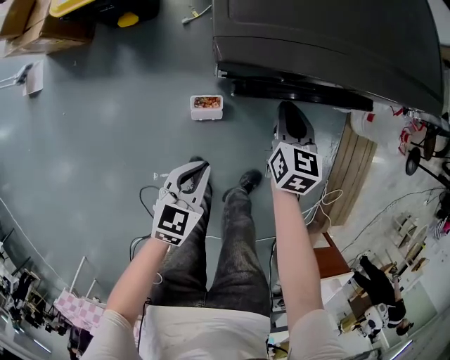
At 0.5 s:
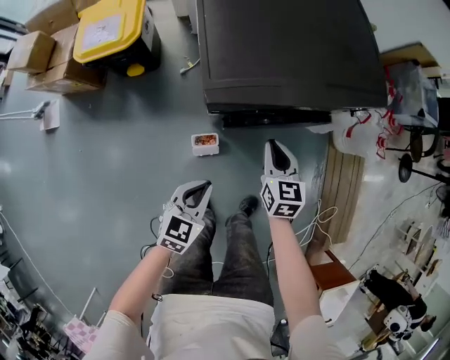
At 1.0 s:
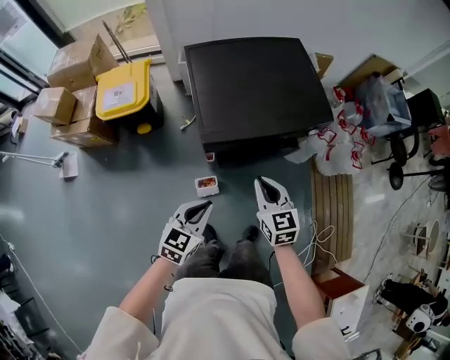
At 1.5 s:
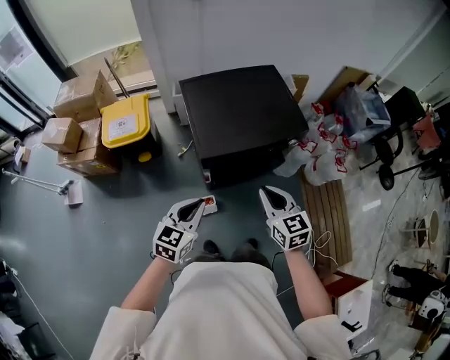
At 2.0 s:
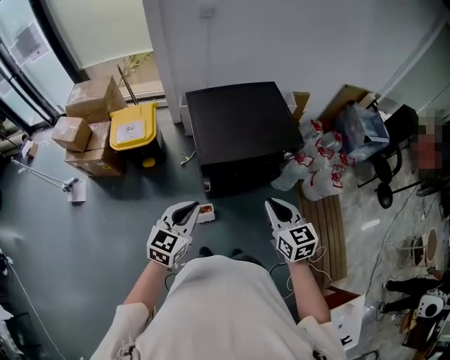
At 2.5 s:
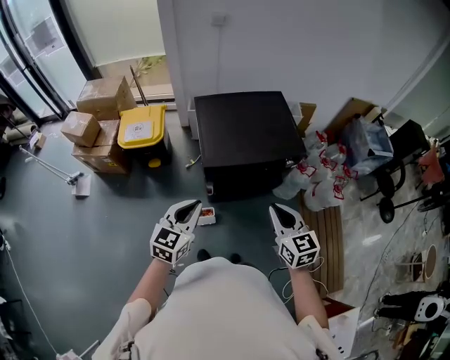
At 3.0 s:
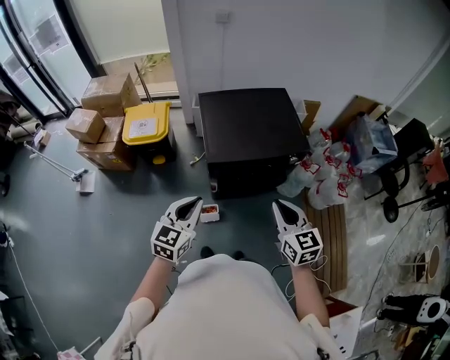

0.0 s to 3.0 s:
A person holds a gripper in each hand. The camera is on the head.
0.0 to 1.5 s: The grippers both shift upward by about 50 cm. The left gripper turns by about 20 degrees.
1.5 to 3.0 s: The right gripper travels upward, backward and to the right by about 15 cm, while the left gripper goes about 10 cm upward and backward.

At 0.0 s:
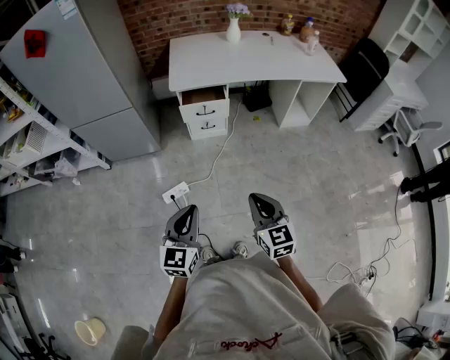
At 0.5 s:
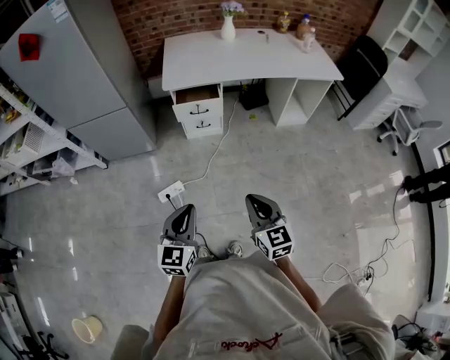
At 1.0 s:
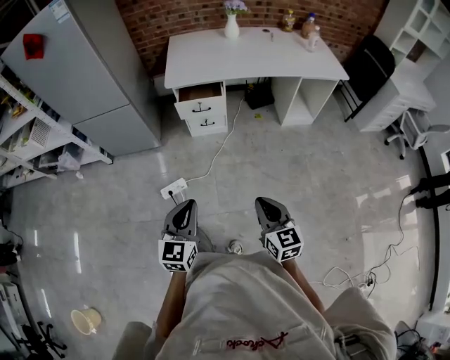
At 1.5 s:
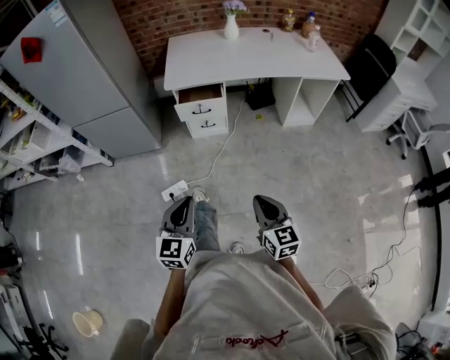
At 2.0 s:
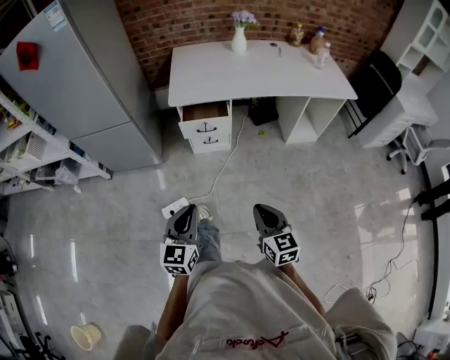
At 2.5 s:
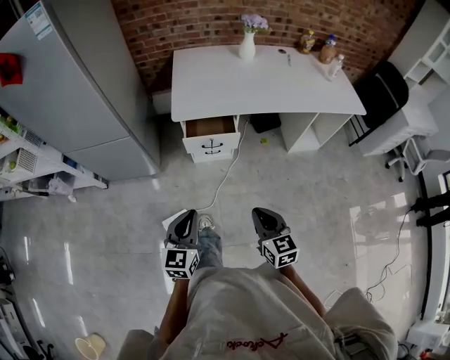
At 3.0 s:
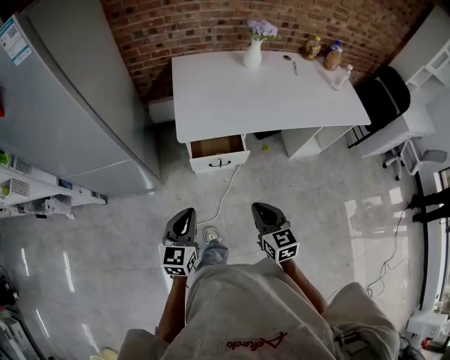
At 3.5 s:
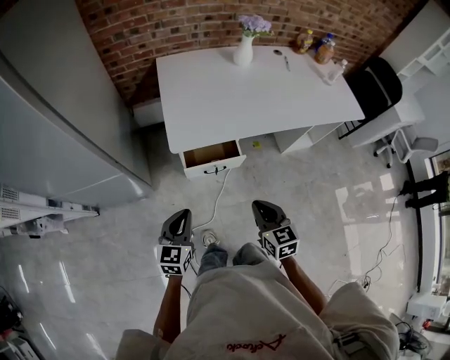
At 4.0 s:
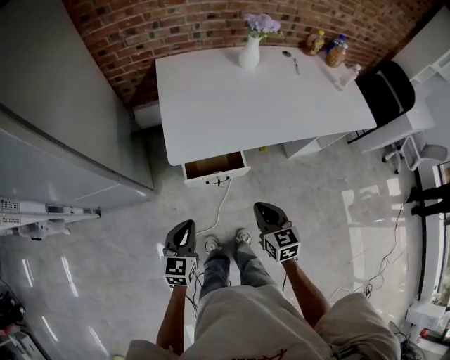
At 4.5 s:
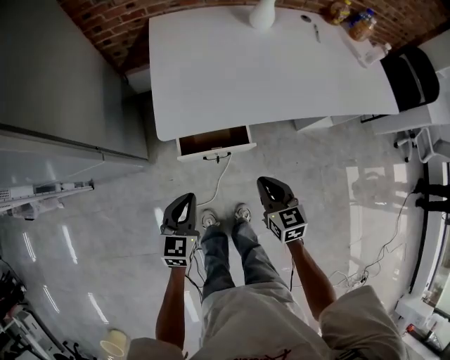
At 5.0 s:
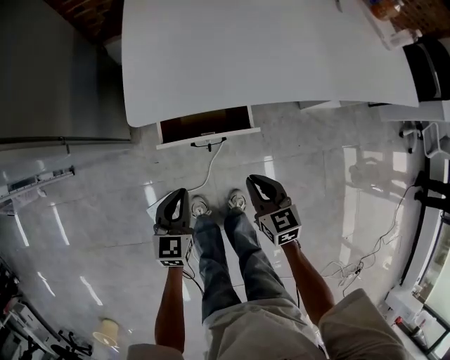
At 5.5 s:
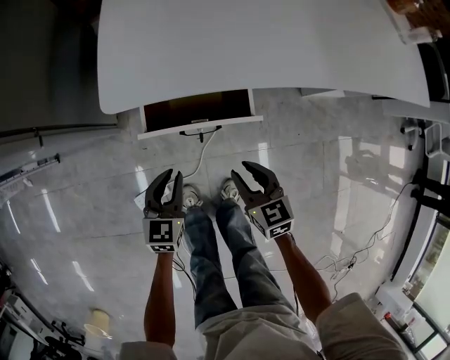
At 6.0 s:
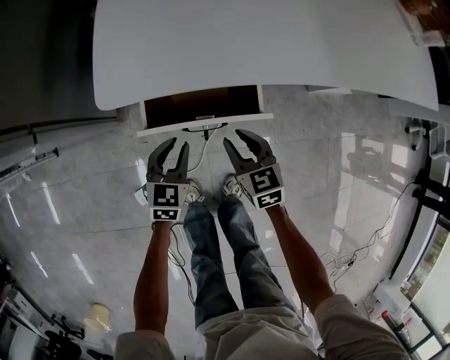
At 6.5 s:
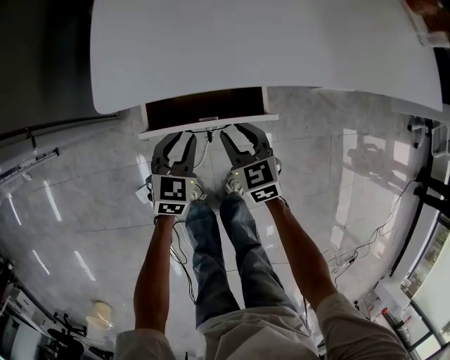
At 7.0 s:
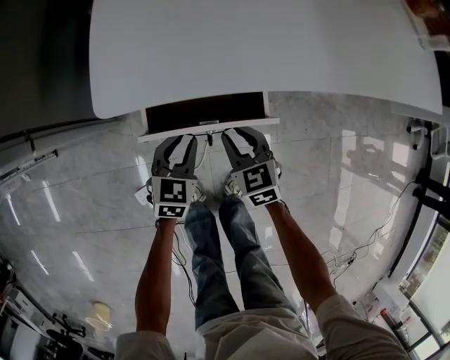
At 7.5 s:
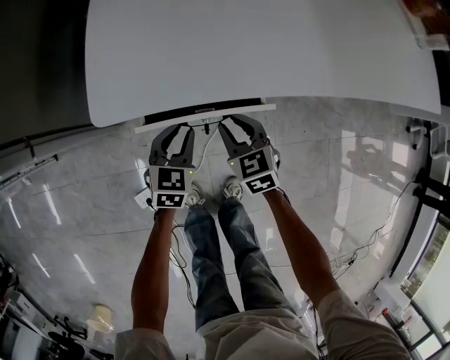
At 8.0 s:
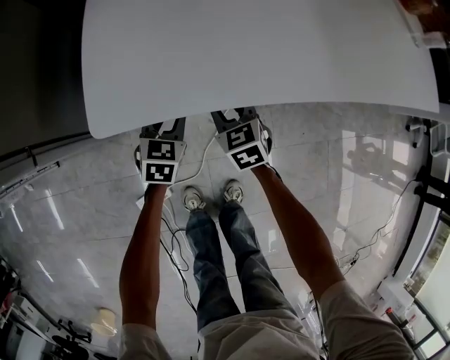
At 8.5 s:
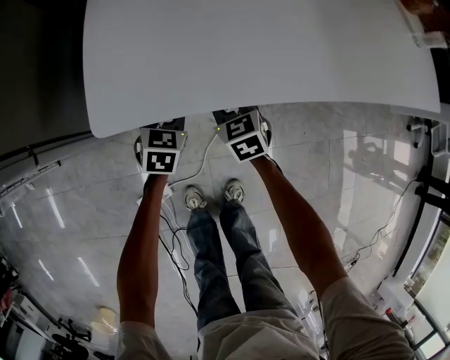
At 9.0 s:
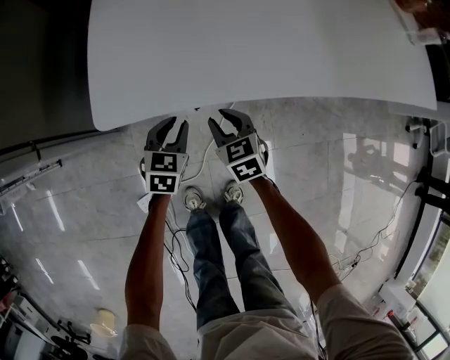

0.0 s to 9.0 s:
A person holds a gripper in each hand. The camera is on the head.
0.0 to 2.0 s: The right gripper shifts some 10 cm forward, to the right and downward; the left gripper shifts about 10 cm forward.
2.0 to 4.5 s: The pair of grippers is taken forward, roughly 40 cm.
4.5 to 7.0 s: Both grippers travel together downward and forward, about 25 cm. The right gripper opens its fingers. Meanwhile the left gripper opens up.
7.0 to 9.0 s: Both grippers travel together forward, approximately 5 cm.

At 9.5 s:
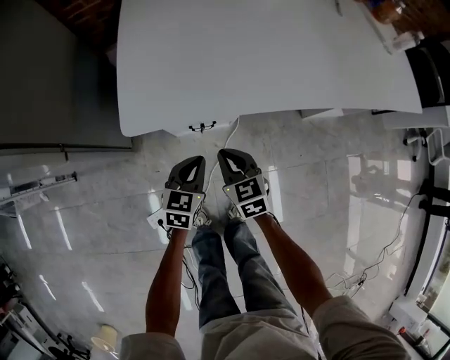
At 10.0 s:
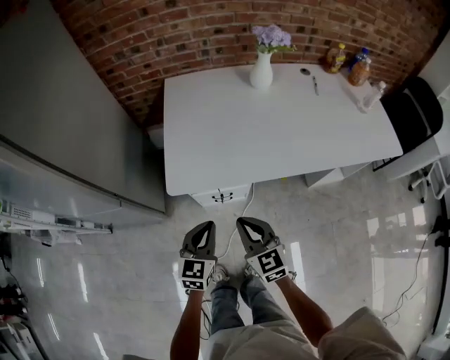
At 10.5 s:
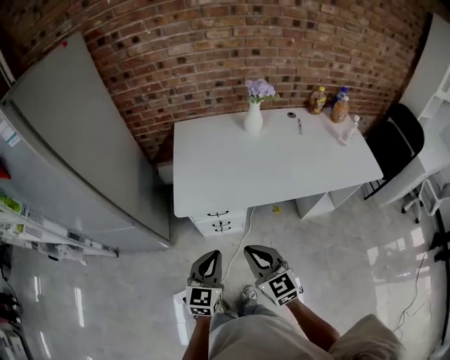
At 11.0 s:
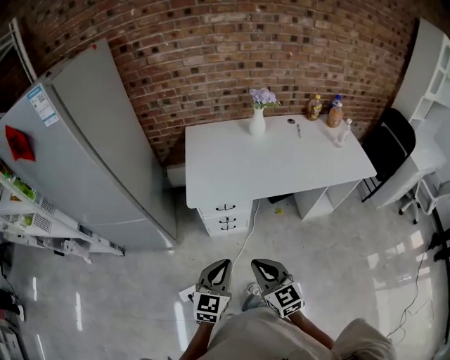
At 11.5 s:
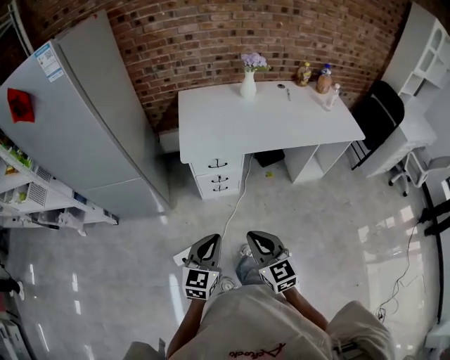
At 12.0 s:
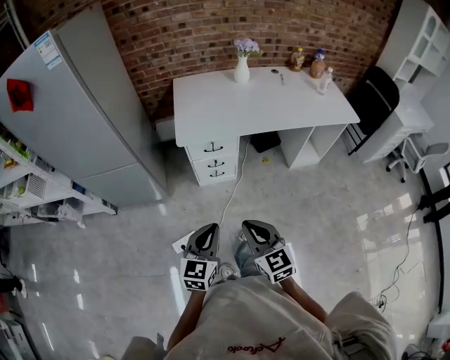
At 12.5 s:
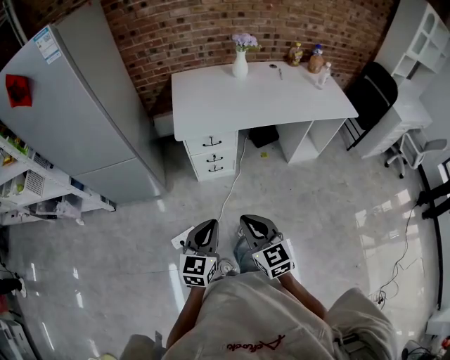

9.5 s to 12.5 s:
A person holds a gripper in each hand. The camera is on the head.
9.5 to 11.0 s: Both grippers travel together upward and backward, some 40 cm. The right gripper rotates about 20 degrees. Meanwhile the left gripper swivels roughly 20 degrees.
11.0 to 12.5 s: Both grippers travel together backward, approximately 15 cm.

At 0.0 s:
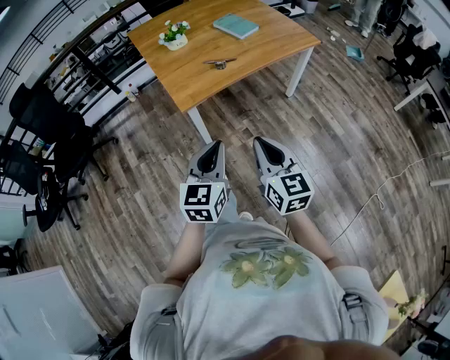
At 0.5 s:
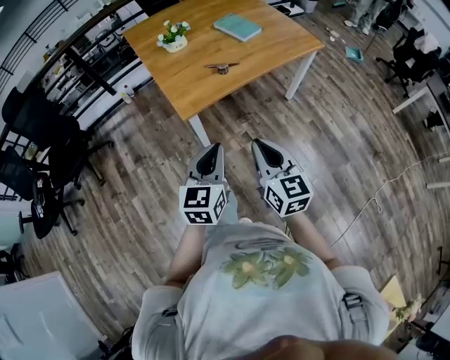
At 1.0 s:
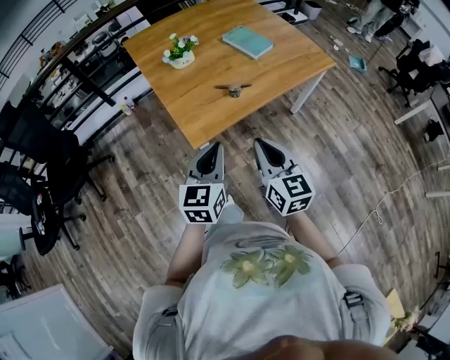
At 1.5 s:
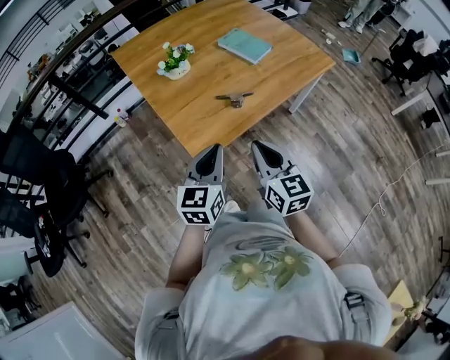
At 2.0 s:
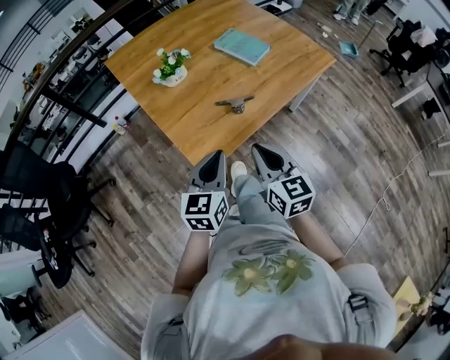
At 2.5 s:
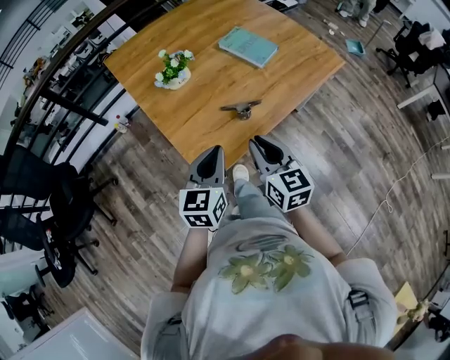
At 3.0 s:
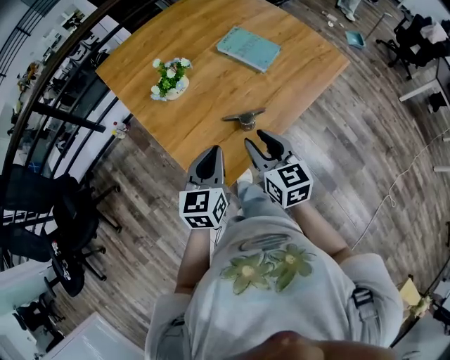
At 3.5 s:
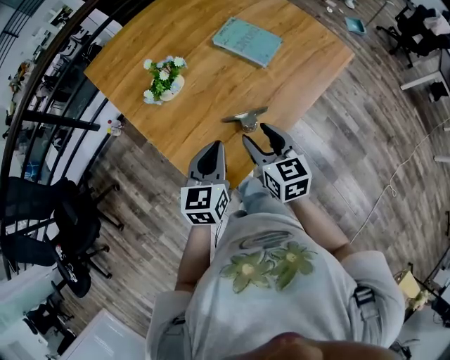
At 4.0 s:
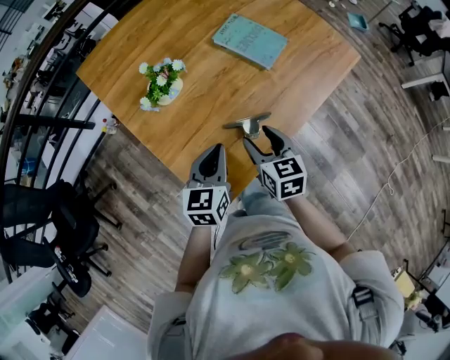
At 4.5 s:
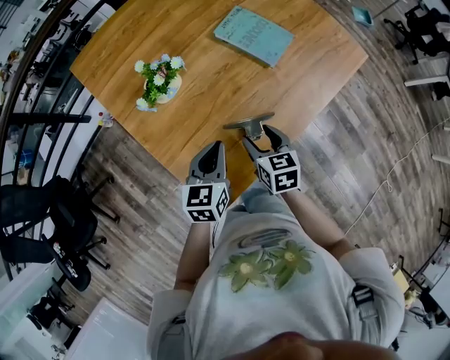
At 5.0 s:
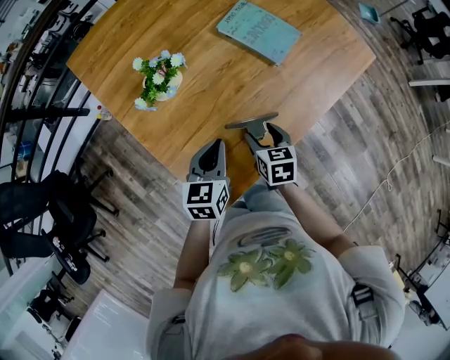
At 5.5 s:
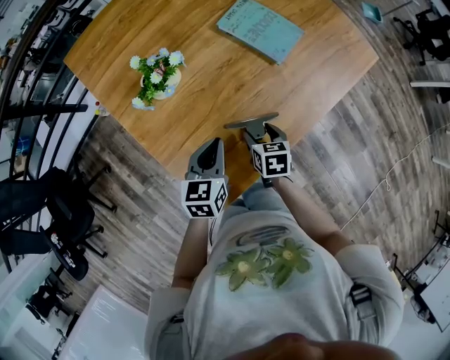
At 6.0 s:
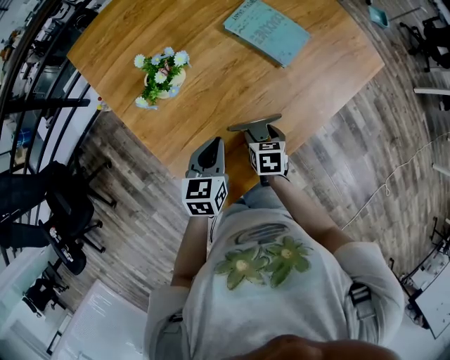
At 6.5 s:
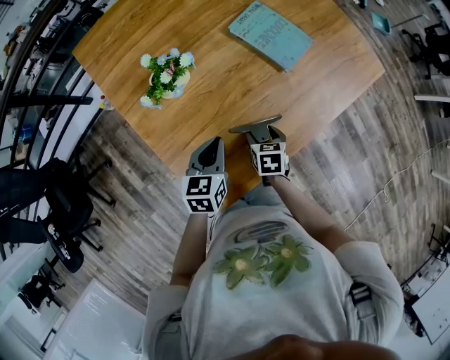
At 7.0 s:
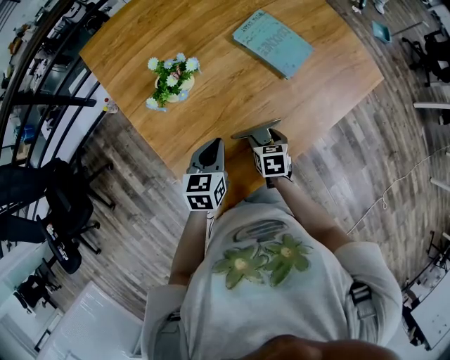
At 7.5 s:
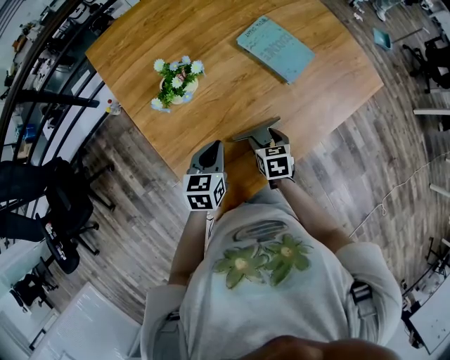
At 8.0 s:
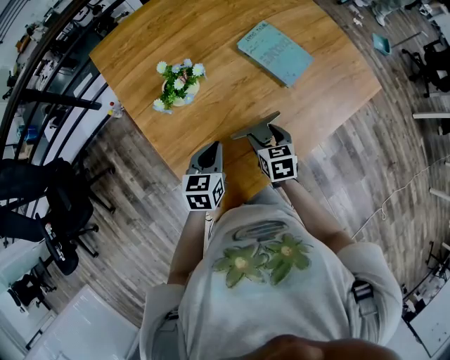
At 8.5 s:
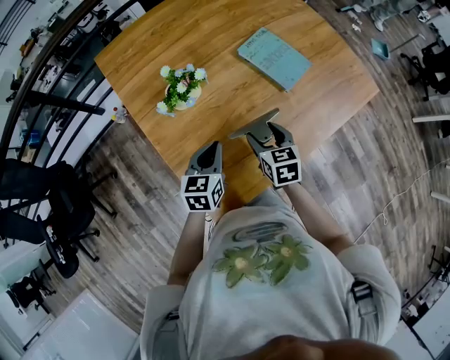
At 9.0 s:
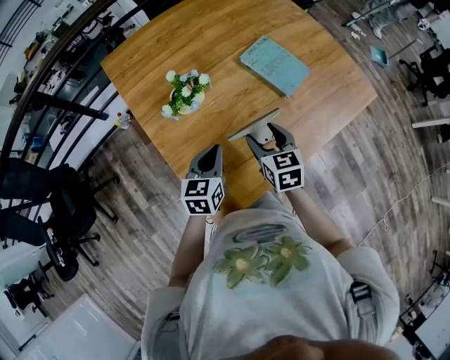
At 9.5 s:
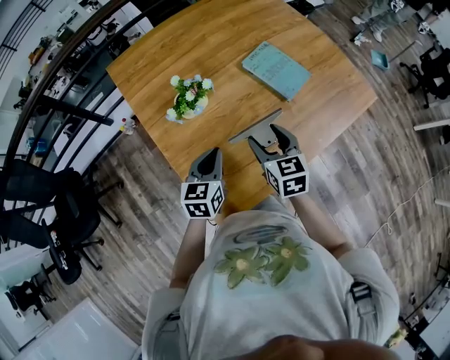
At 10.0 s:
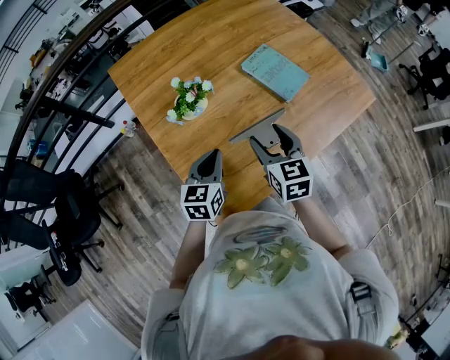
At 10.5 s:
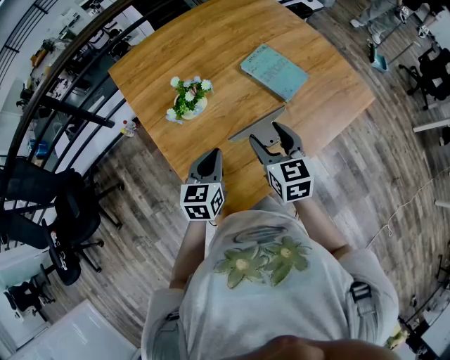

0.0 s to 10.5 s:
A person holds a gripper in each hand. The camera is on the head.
0.0 to 2.0 s: Both grippers travel together forward, some 30 cm.
2.0 to 4.0 s: The two grippers go about 25 cm forward and downward. The right gripper opens.
4.0 to 6.5 s: The left gripper travels downward by roughly 10 cm, while the right gripper is displaced downward by about 15 cm, and rotates approximately 30 degrees.
6.5 to 8.5 s: The right gripper goes about 15 cm upward, and changes its angle by approximately 20 degrees.
8.5 to 10.5 s: The right gripper travels upward by roughly 10 cm. The left gripper travels upward by about 5 cm.

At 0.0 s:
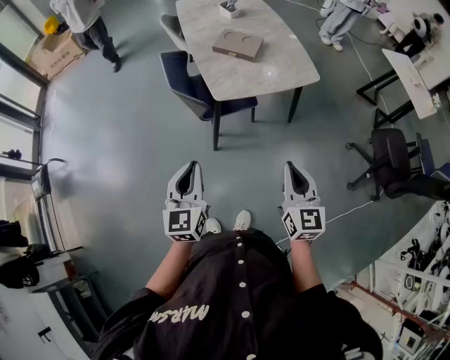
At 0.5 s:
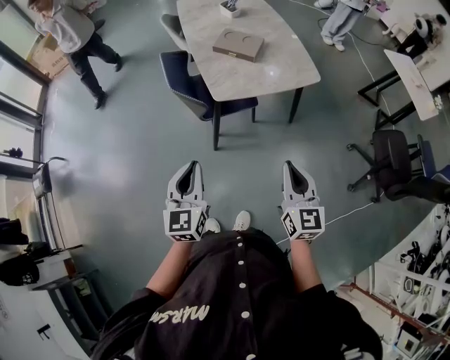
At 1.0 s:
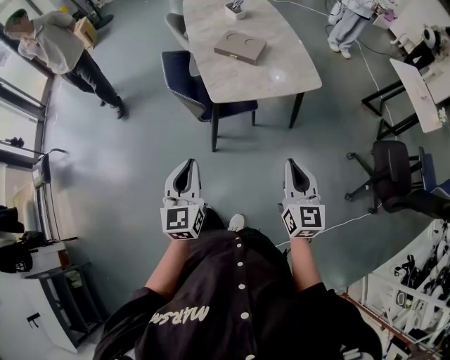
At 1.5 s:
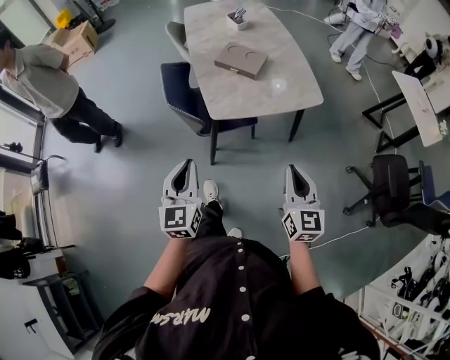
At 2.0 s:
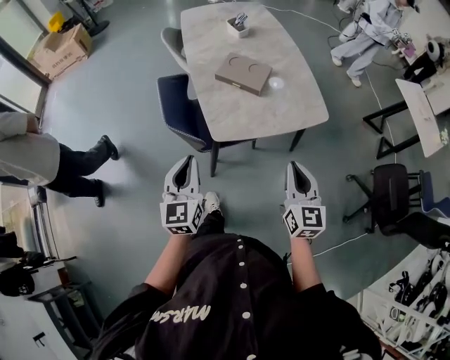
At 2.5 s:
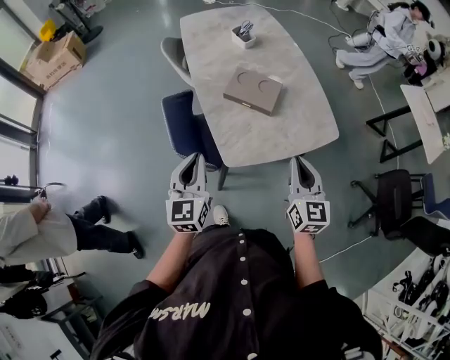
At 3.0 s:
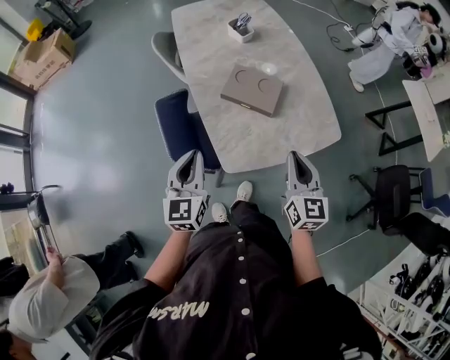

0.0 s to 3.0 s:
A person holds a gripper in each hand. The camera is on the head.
0.0 to 1.5 s: The left gripper is displaced forward by about 10 cm, while the right gripper moves forward and to the right, approximately 10 cm.
1.5 to 3.0 s: Both grippers move forward, approximately 30 cm.
